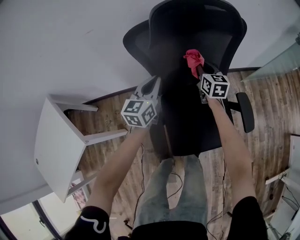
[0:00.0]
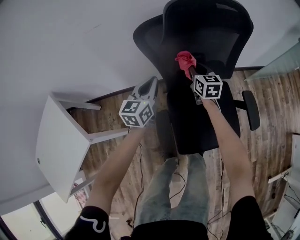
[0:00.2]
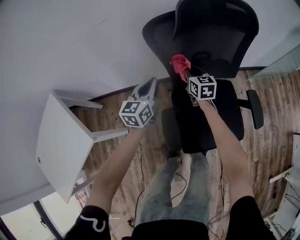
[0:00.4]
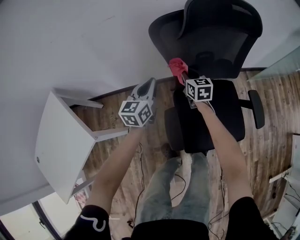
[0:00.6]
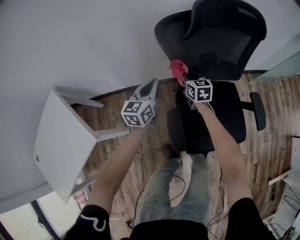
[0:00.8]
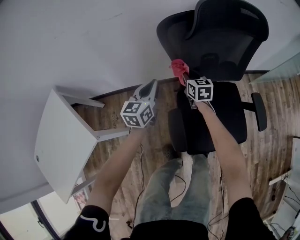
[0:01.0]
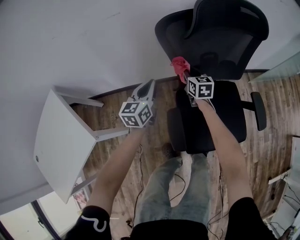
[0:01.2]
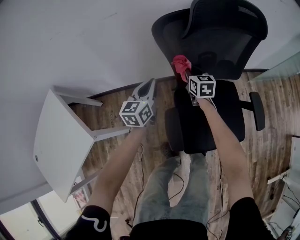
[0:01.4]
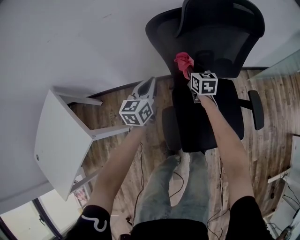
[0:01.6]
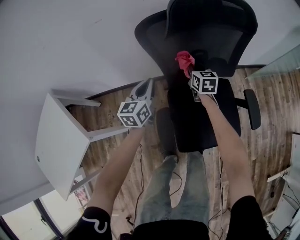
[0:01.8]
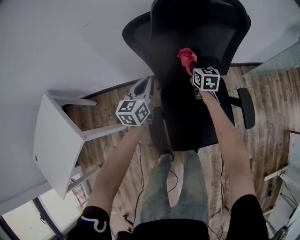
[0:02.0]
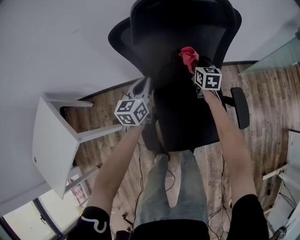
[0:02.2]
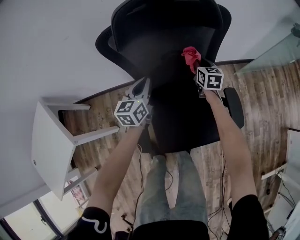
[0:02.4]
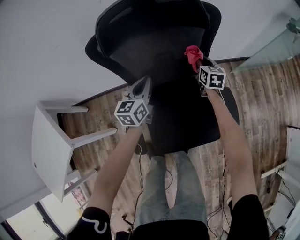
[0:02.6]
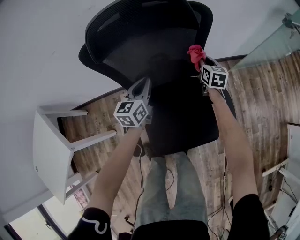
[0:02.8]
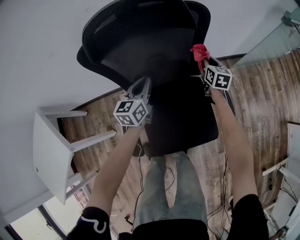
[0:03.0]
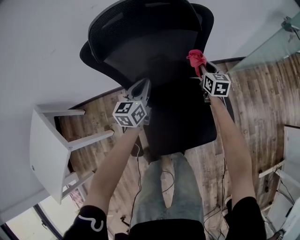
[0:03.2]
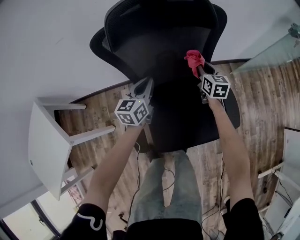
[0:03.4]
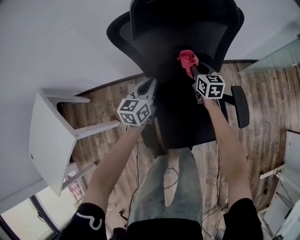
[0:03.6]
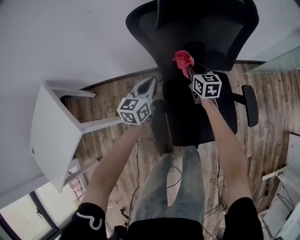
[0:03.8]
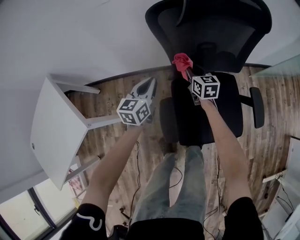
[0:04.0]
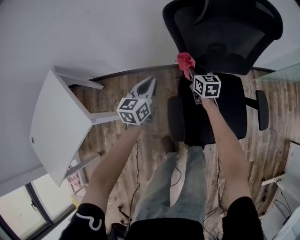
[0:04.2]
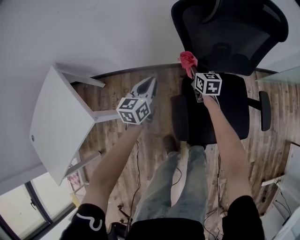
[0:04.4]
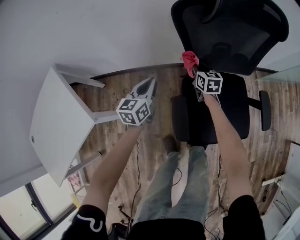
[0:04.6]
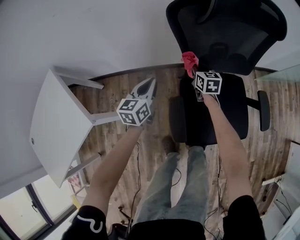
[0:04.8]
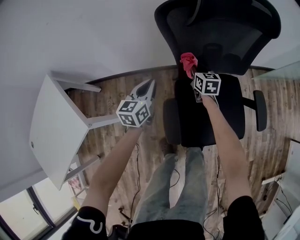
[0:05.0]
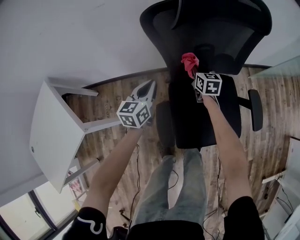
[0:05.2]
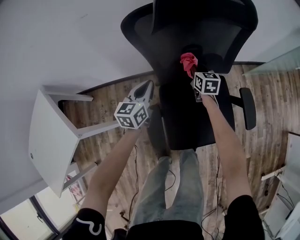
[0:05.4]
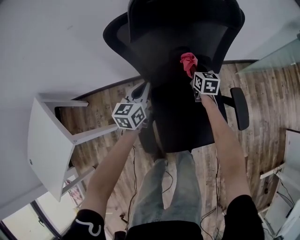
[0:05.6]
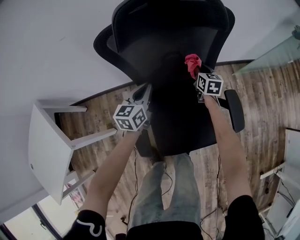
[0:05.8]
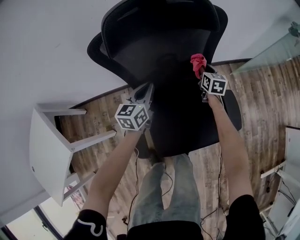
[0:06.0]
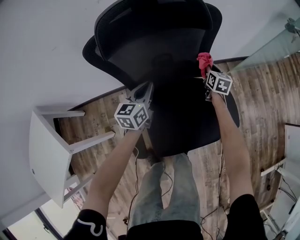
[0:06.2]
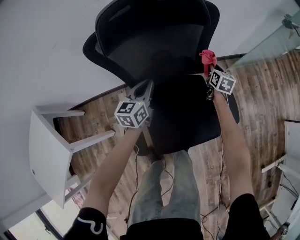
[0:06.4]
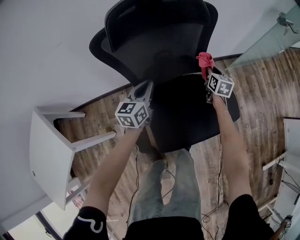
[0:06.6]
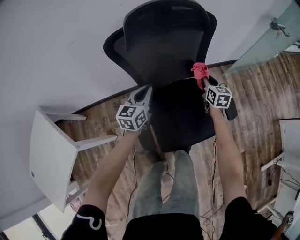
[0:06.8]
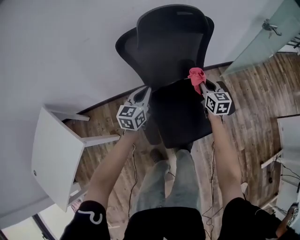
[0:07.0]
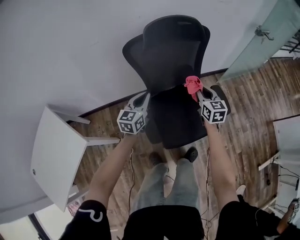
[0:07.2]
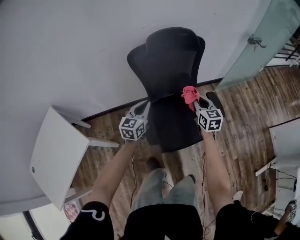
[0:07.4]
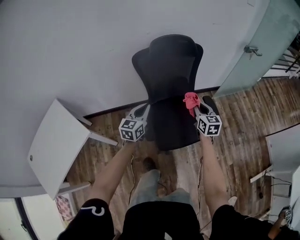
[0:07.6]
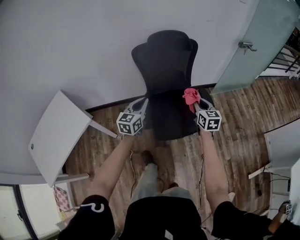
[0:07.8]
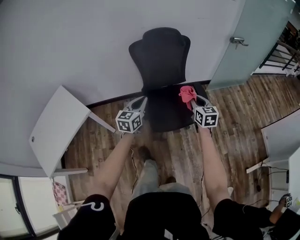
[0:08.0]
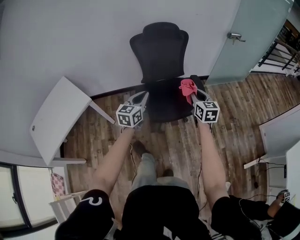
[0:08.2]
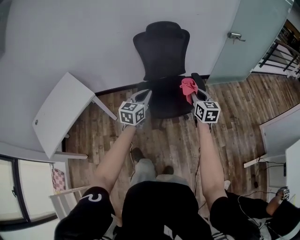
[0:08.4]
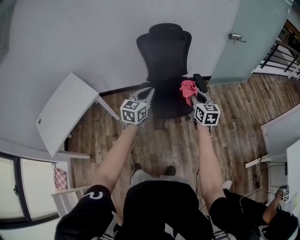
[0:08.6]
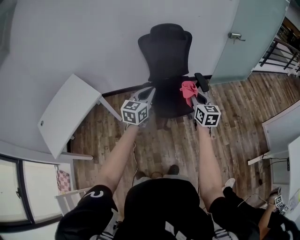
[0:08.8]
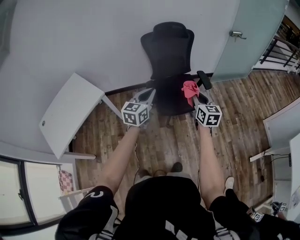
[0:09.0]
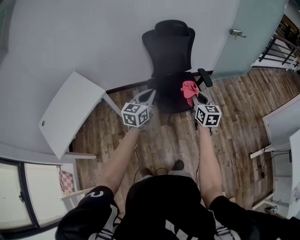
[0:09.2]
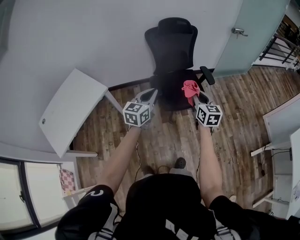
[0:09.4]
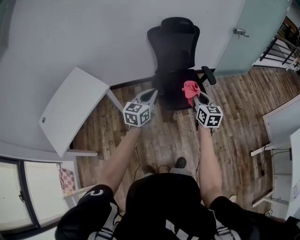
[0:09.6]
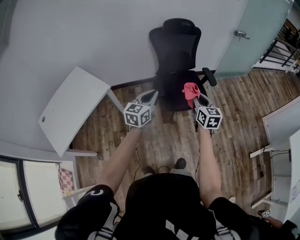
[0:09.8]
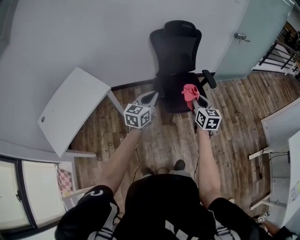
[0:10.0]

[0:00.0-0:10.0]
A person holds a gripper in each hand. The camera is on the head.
0:00.0 to 0:01.4: Both grippers move to the left, roughly 15 cm.
0:01.4 to 0:02.8: The grippers both shift to the right by roughly 30 cm.
0:02.8 to 0:04.2: The right gripper shifts approximately 35 cm to the left. Meanwhile the left gripper moves to the left and backward, some 30 cm.
0:04.2 to 0:05.8: The two grippers go about 25 cm to the right.
0:05.8 to 0:07.2: The right gripper goes roughly 30 cm backward and upward. Meanwhile the left gripper is displaced backward and upward by some 20 cm.
0:07.2 to 0:08.6: The pair of grippers is taken backward, some 40 cm. Both grippers move upward, about 25 cm.
0:08.6 to 0:10.0: Both grippers move to the left and backward, approximately 15 cm.

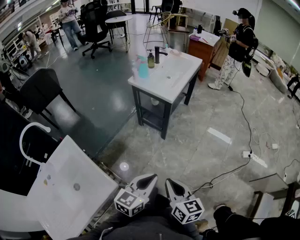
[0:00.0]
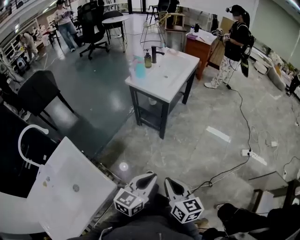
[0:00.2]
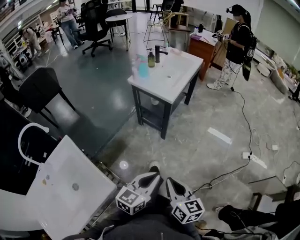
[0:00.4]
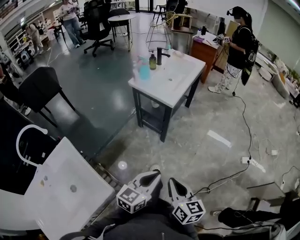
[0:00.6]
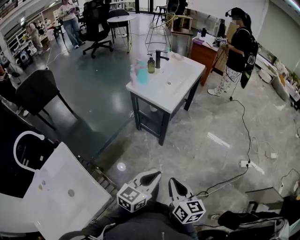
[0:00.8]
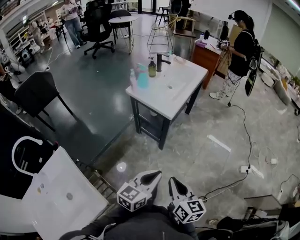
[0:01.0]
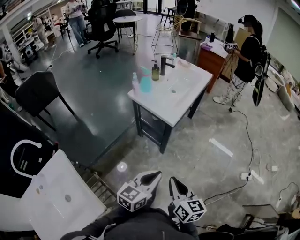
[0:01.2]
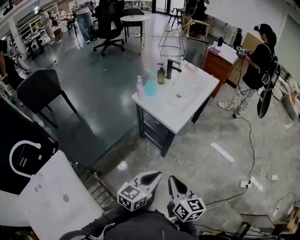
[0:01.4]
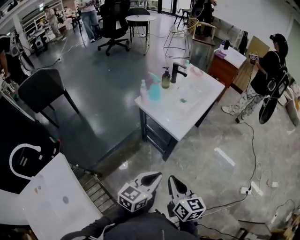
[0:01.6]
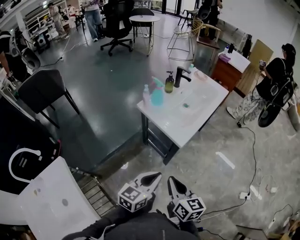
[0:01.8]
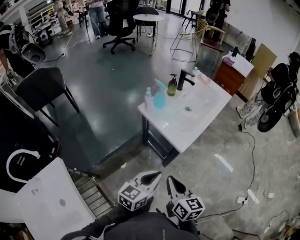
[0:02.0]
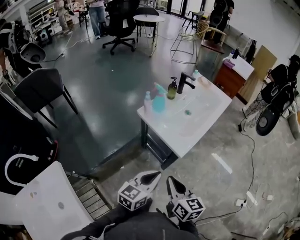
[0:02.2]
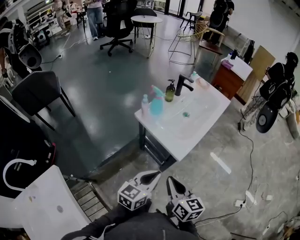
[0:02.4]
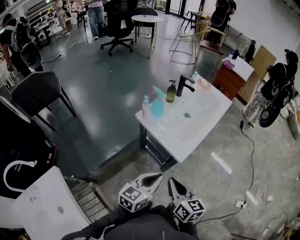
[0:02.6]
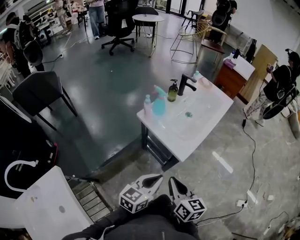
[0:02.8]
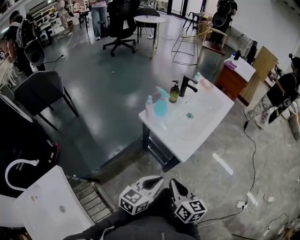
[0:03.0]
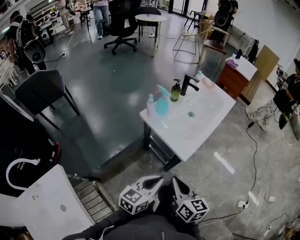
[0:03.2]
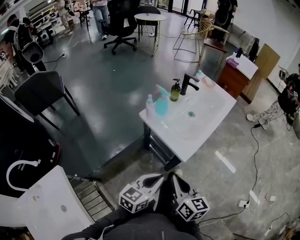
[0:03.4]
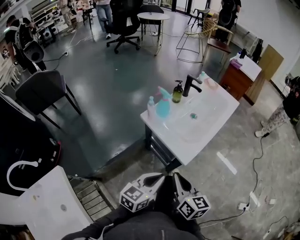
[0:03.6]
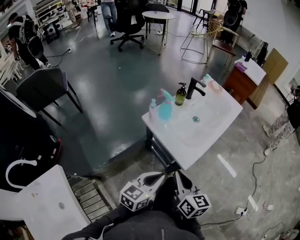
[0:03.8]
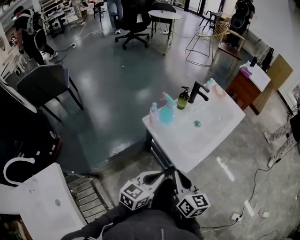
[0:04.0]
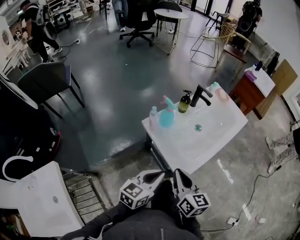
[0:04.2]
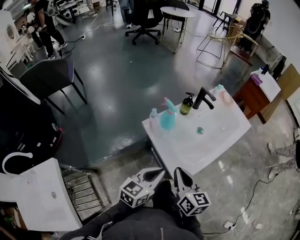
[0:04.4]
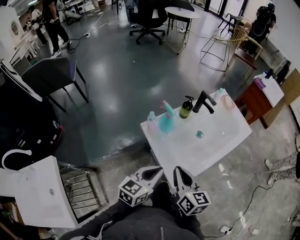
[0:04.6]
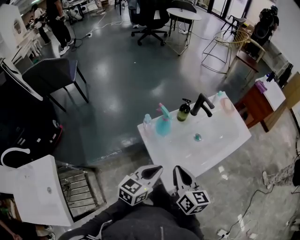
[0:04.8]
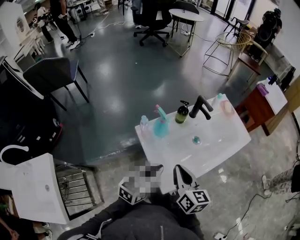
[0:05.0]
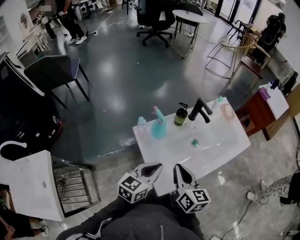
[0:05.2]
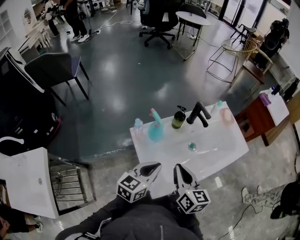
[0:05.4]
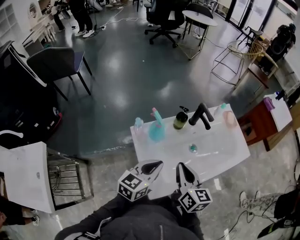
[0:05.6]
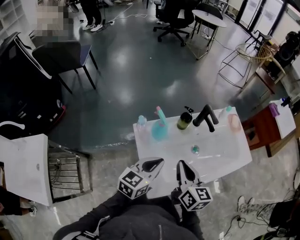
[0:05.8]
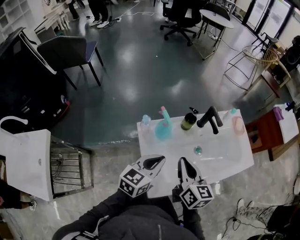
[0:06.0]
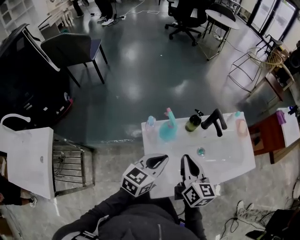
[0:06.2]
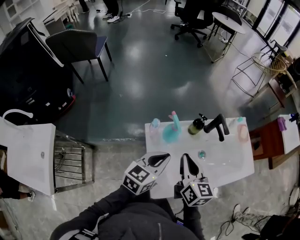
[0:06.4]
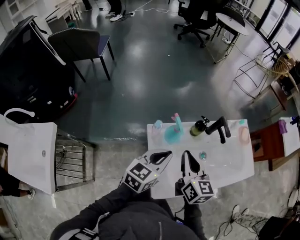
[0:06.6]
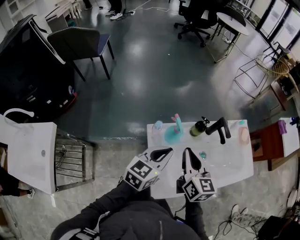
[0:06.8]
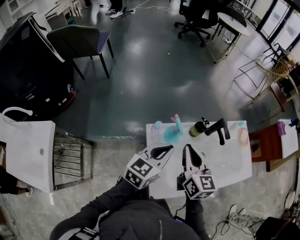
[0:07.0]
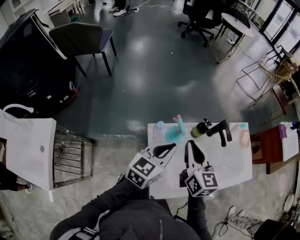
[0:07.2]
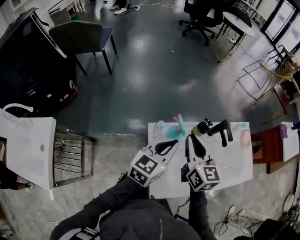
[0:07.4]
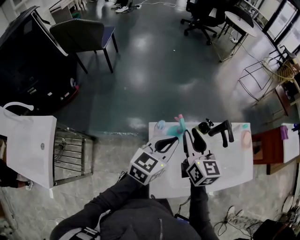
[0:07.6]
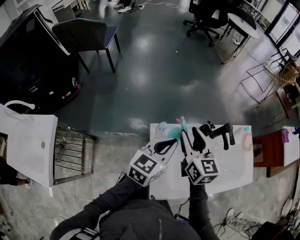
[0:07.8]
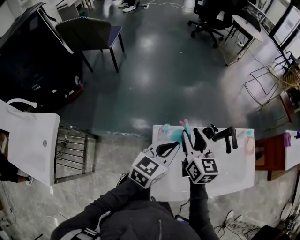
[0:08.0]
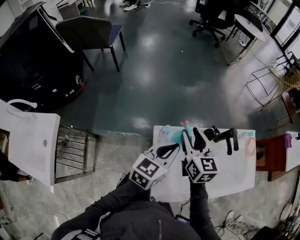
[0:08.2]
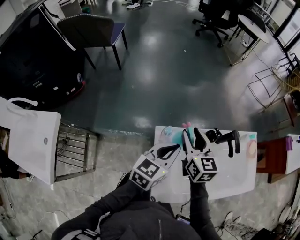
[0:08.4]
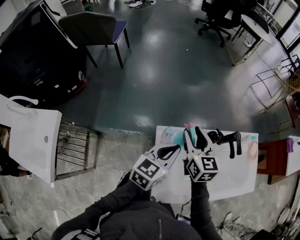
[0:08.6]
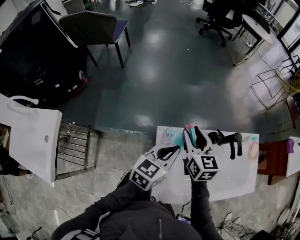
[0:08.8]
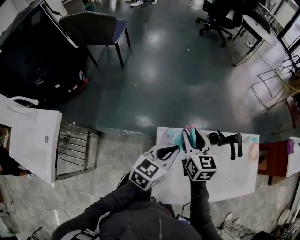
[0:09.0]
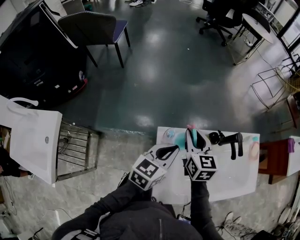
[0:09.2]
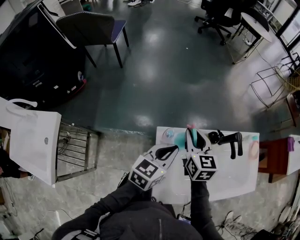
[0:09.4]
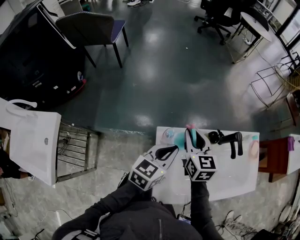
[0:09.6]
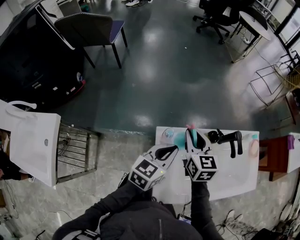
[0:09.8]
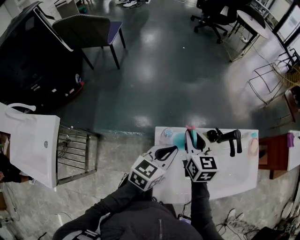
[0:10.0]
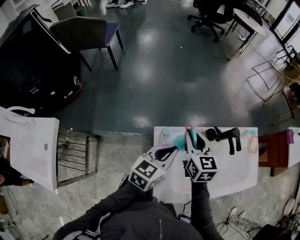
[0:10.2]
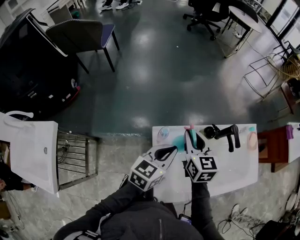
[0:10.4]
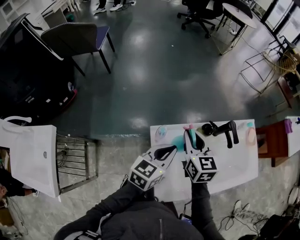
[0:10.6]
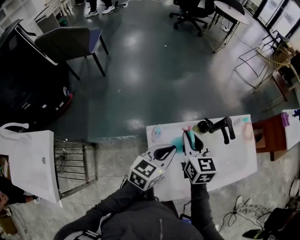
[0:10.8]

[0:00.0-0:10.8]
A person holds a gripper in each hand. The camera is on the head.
0:00.0 to 0:01.6: Both grippers move forward, about 25 cm.
0:01.6 to 0:03.0: Both grippers move forward, some 10 cm.
0:03.0 to 0:04.6: The grippers both shift forward by roughly 20 cm.
0:04.6 to 0:06.2: Both grippers travel together forward, about 15 cm.
0:06.2 to 0:07.8: The right gripper moves forward and to the left, roughly 15 cm, and opens up. Meanwhile the left gripper shifts some 10 cm forward and upward.
0:07.8 to 0:09.2: The right gripper travels downward by roughly 5 cm.
0:09.2 to 0:10.8: The right gripper ends up approximately 5 cm from where it was.

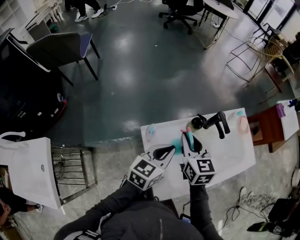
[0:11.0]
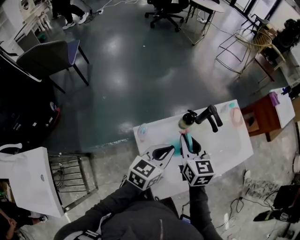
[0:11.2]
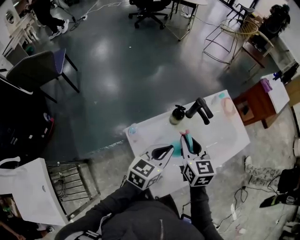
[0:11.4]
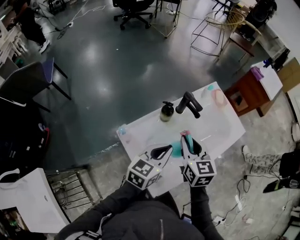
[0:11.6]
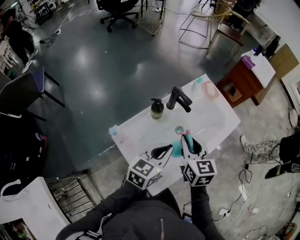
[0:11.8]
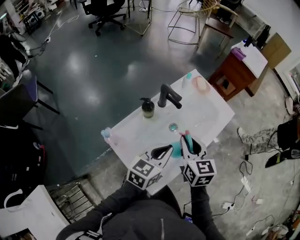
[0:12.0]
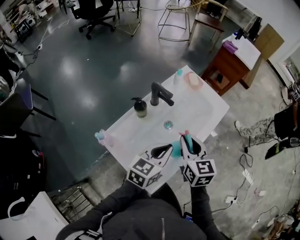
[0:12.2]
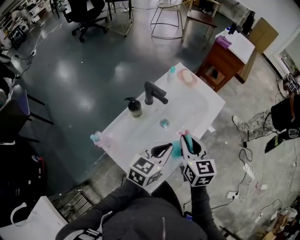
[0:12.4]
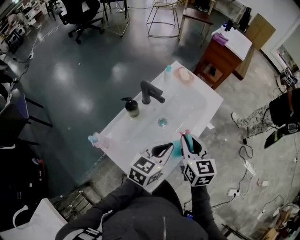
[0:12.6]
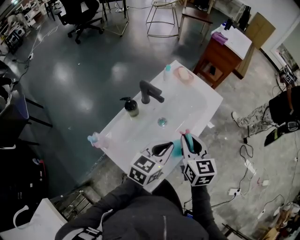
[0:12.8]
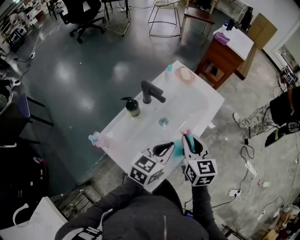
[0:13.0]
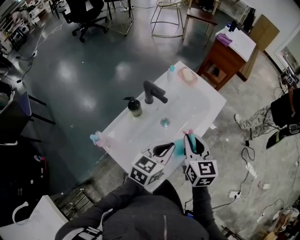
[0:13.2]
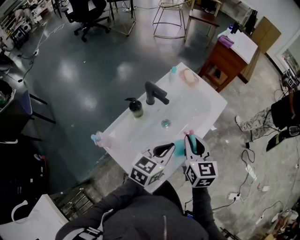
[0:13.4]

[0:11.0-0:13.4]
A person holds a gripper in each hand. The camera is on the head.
0:11.0 to 0:12.2: The left gripper shifts by roughly 20 cm, and turns by approximately 30 degrees; the right gripper ends up some 25 cm from where it was, and swivels roughly 30 degrees.
0:12.2 to 0:13.4: There are only small adjustments of the grippers.
